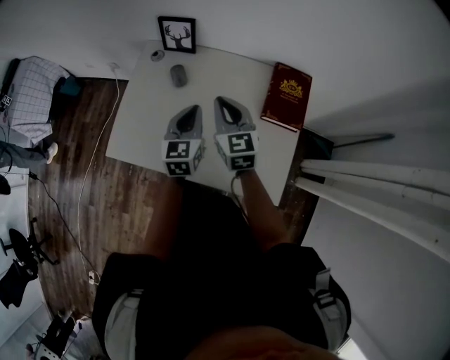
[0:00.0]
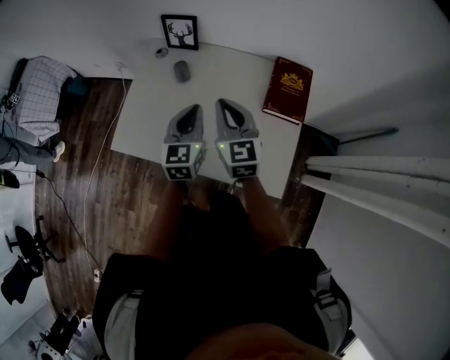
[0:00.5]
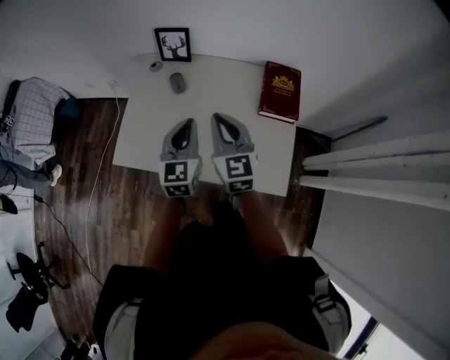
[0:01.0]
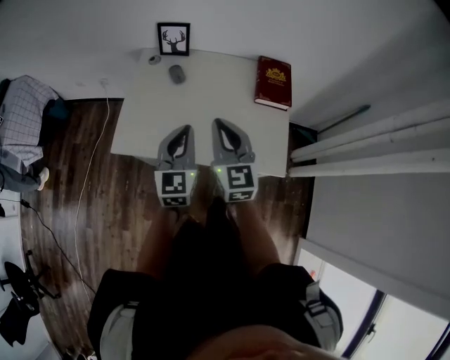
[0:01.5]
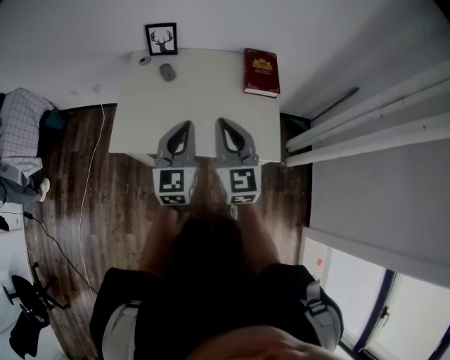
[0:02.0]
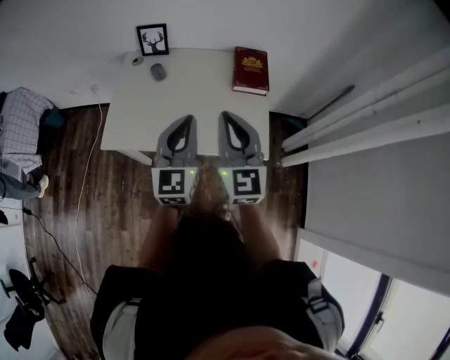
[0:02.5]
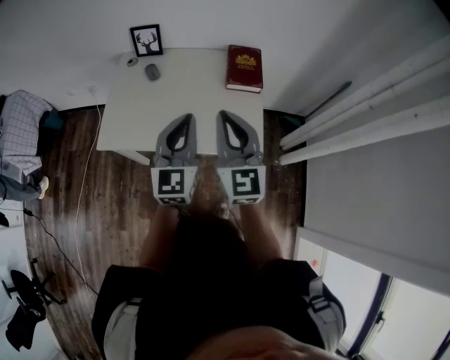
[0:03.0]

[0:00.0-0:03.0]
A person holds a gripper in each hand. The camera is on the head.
0:00.0 to 0:01.5: The right gripper goes approximately 20 cm backward; the left gripper is displaced backward, upward and to the left by some 20 cm.
0:01.5 to 0:03.0: The left gripper moves to the right, upward and backward, roughly 15 cm; the right gripper heads to the right, backward and upward, covering some 20 cm.

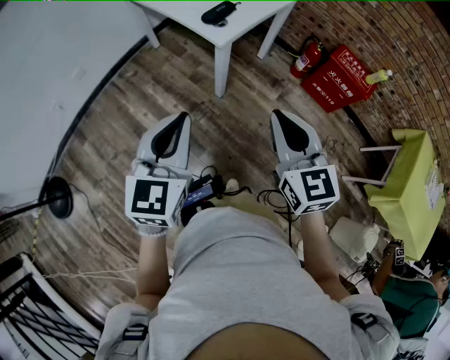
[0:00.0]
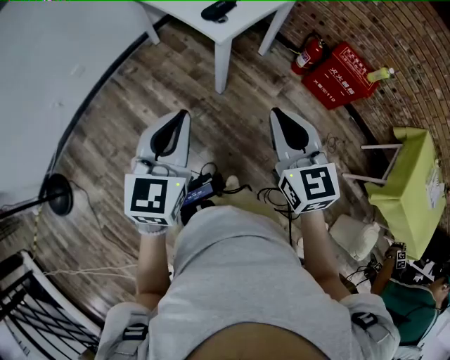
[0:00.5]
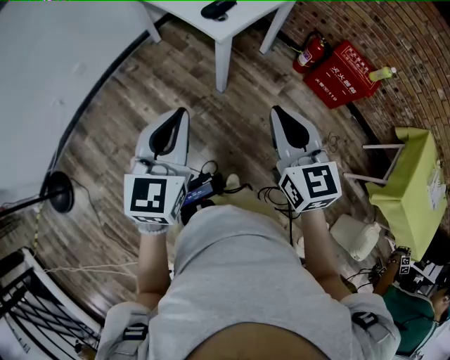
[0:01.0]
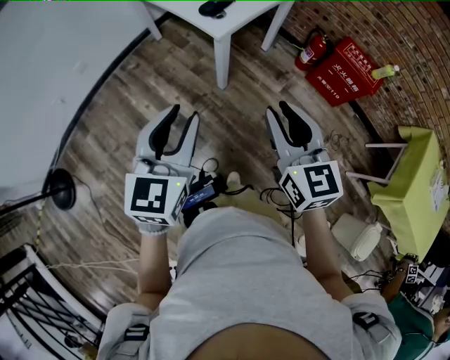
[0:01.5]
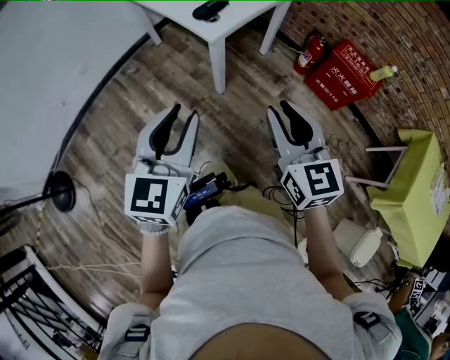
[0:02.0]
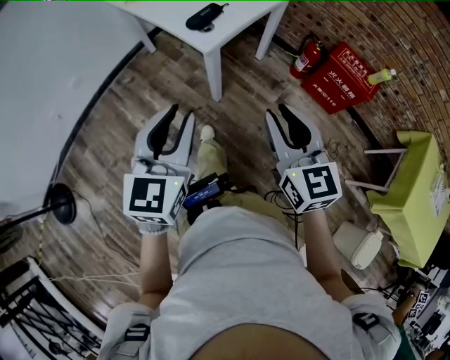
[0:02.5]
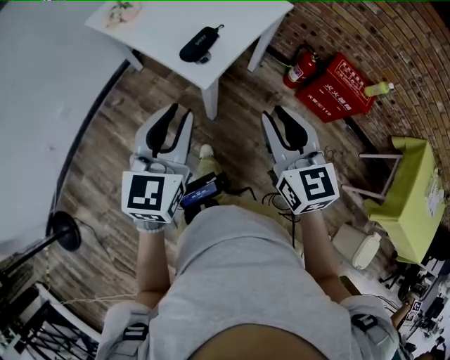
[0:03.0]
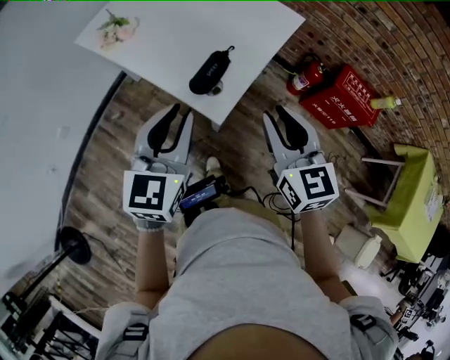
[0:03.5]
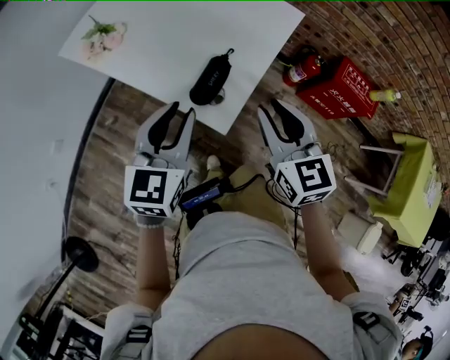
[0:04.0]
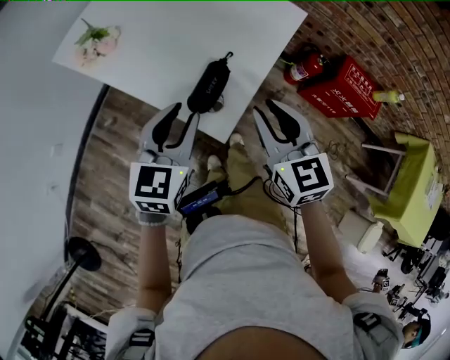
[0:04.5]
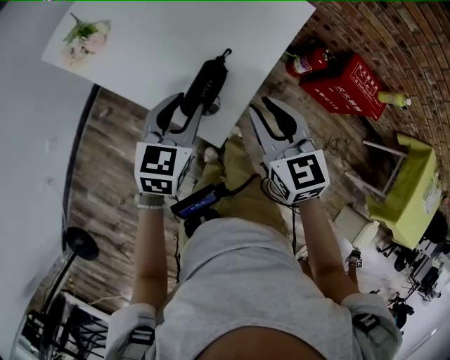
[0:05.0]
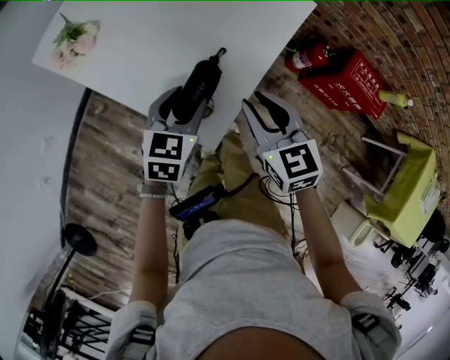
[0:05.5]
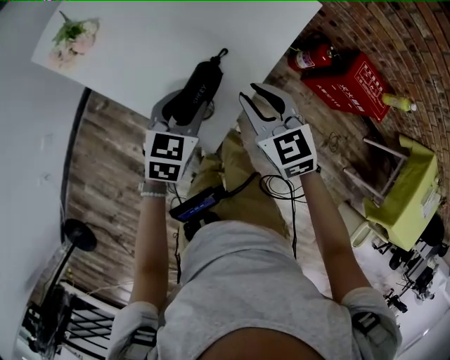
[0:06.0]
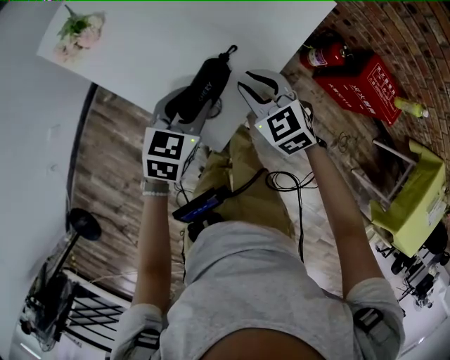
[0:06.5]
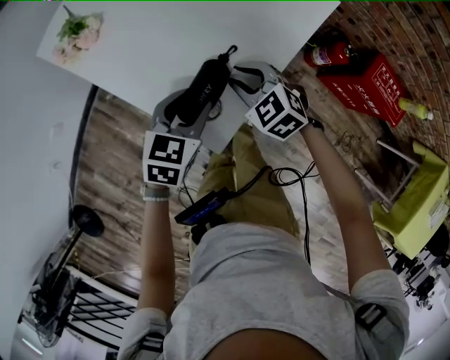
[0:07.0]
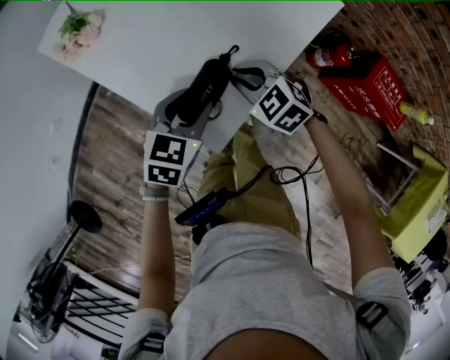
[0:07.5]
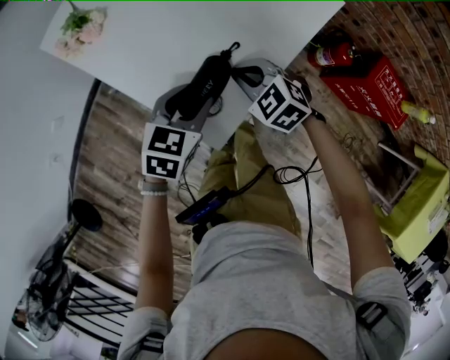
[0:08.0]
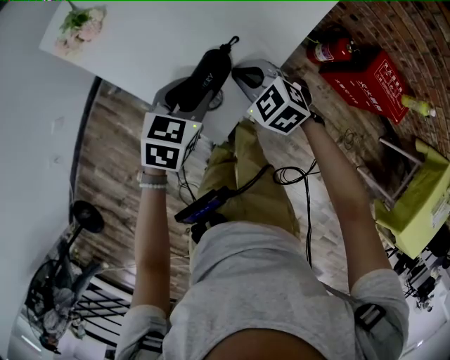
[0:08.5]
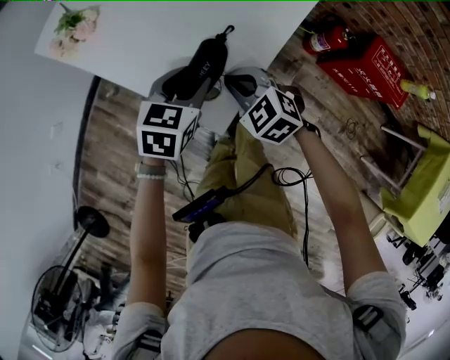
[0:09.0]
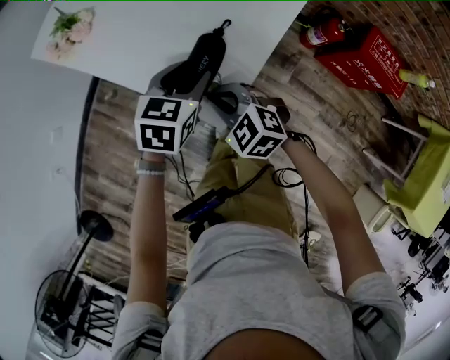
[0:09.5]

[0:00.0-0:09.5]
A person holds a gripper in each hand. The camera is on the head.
0:00.0 to 0:02.0: The right gripper ends up roughly 5 cm from where it was, and opens its fingers. Meanwhile the left gripper goes about 5 cm to the right, and opens up.
0:02.0 to 0:04.0: The two grippers go approximately 40 cm forward.
0:04.0 to 0:05.5: The grippers both shift downward and forward by roughly 15 cm. The left gripper opens its fingers.
0:05.5 to 0:07.5: The right gripper heads downward and forward, covering some 15 cm, and changes its angle by roughly 40 degrees.
0:07.5 to 0:09.5: The right gripper is displaced backward and to the left by approximately 15 cm.

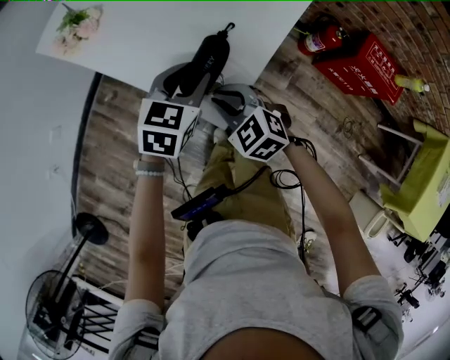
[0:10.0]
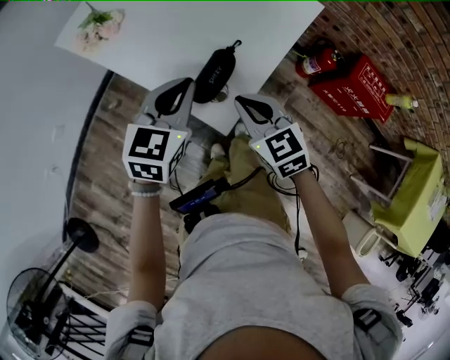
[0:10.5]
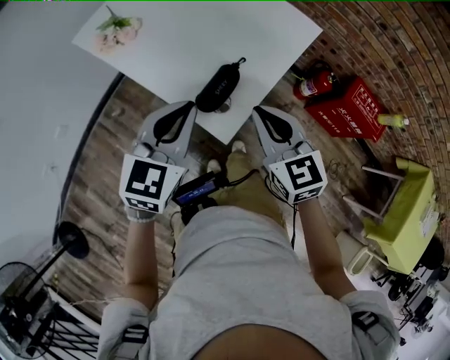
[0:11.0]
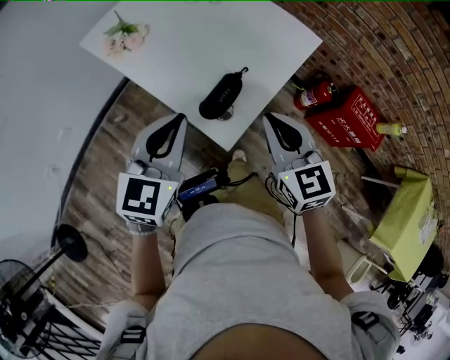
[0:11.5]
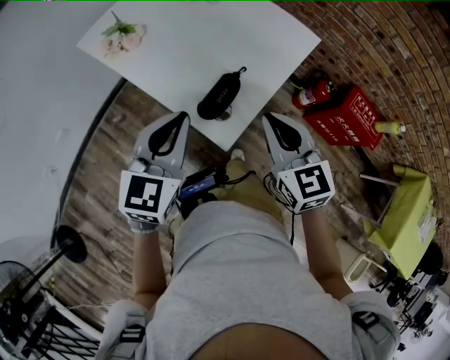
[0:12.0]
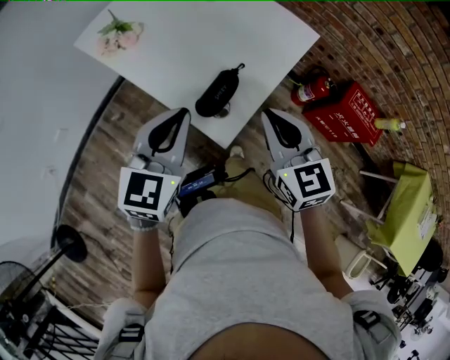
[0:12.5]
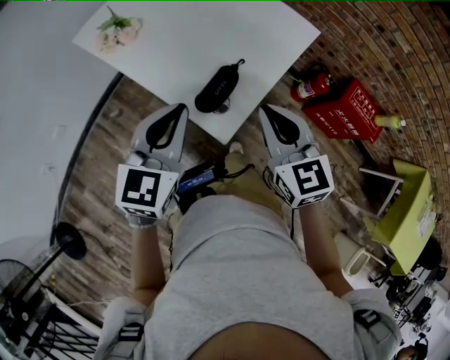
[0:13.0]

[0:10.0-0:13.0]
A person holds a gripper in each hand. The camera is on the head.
0:10.0 to 0:11.5: The left gripper moves upward, backward and to the left, roughly 20 cm, changes its angle by about 20 degrees, and closes up. The right gripper travels upward and to the right by roughly 20 cm, and turns by roughly 30 degrees.
0:11.5 to 0:13.0: The grippers move only a little.

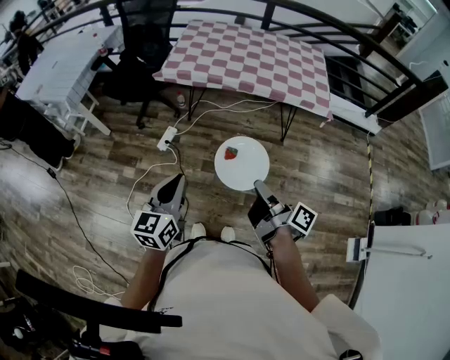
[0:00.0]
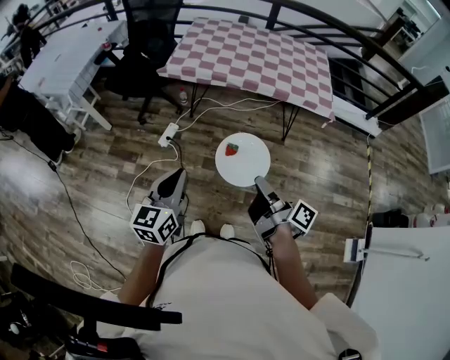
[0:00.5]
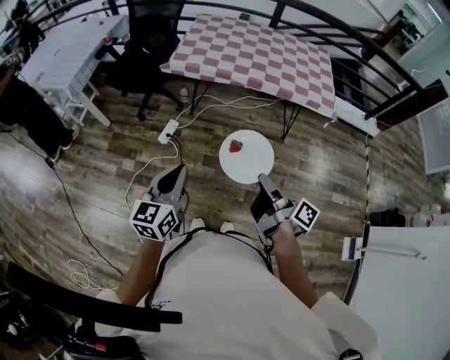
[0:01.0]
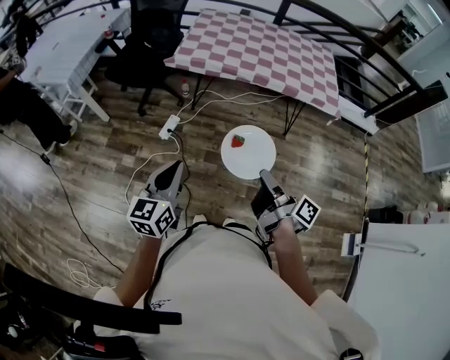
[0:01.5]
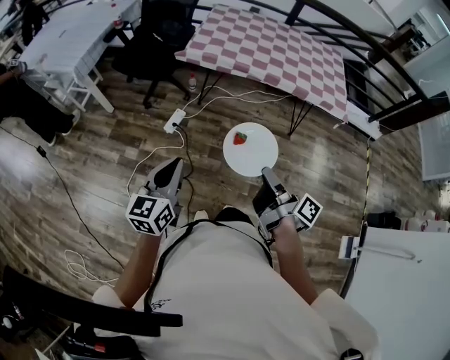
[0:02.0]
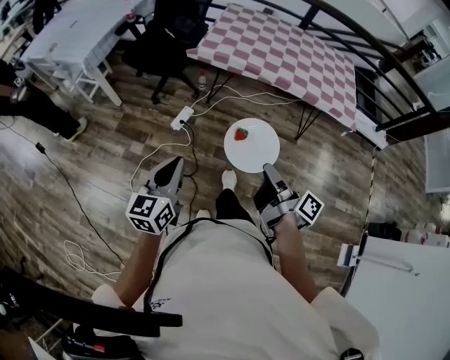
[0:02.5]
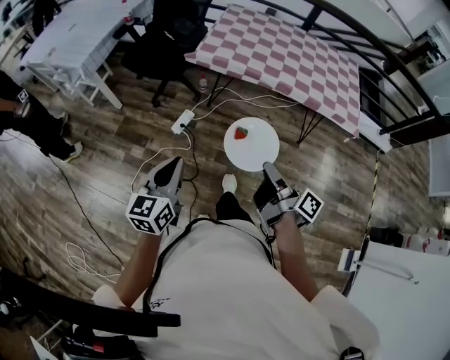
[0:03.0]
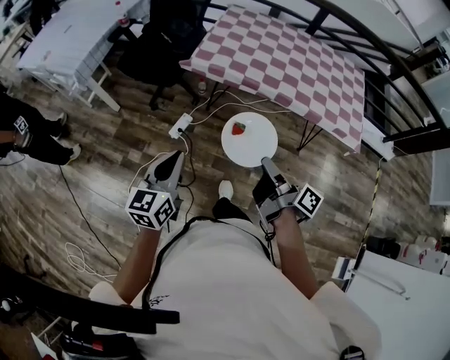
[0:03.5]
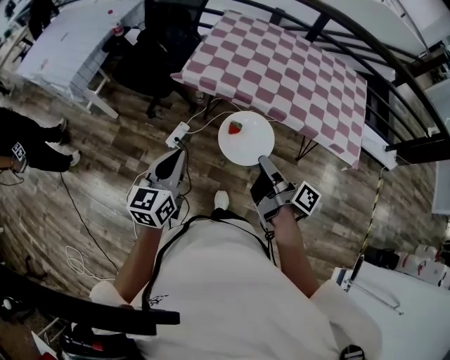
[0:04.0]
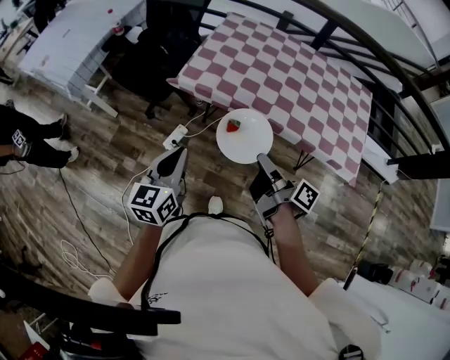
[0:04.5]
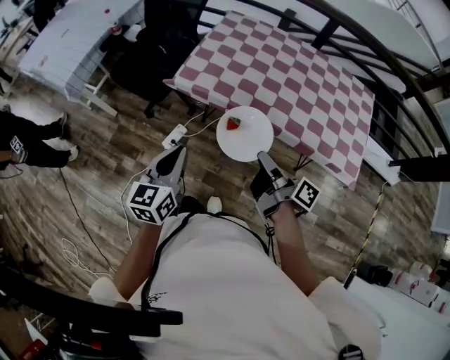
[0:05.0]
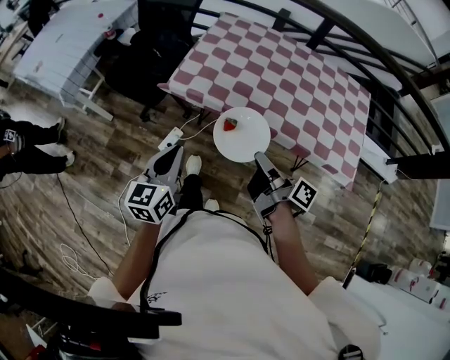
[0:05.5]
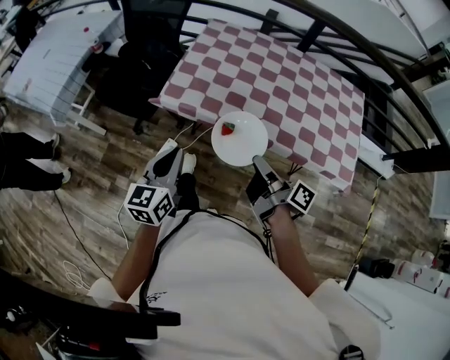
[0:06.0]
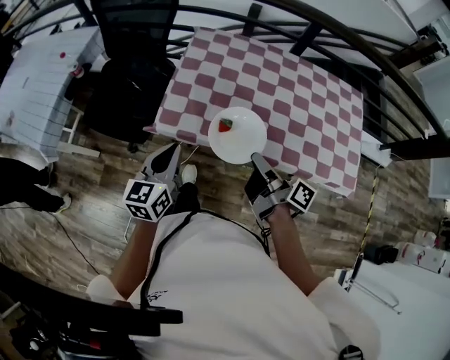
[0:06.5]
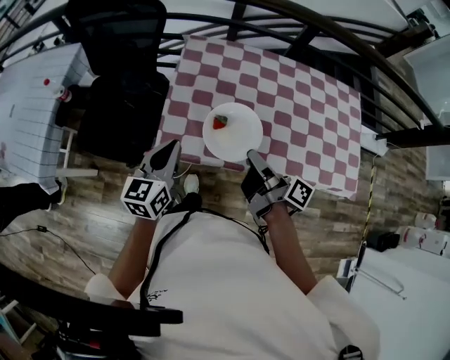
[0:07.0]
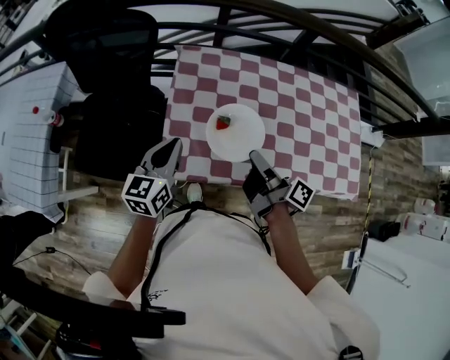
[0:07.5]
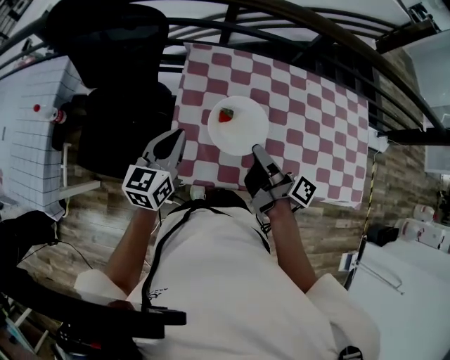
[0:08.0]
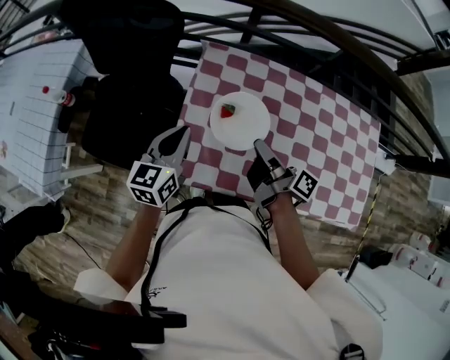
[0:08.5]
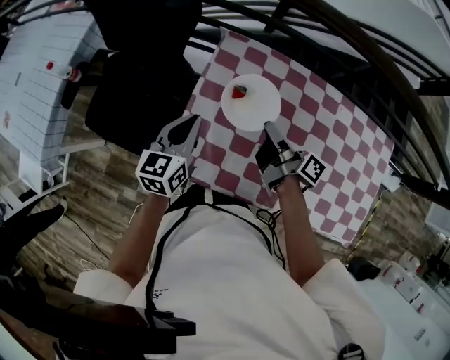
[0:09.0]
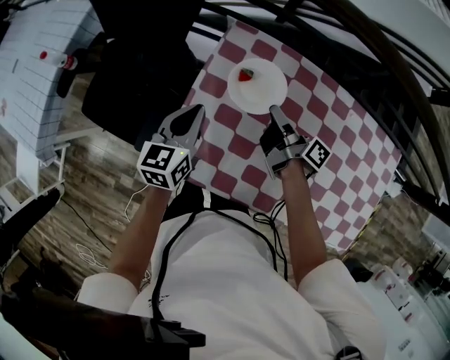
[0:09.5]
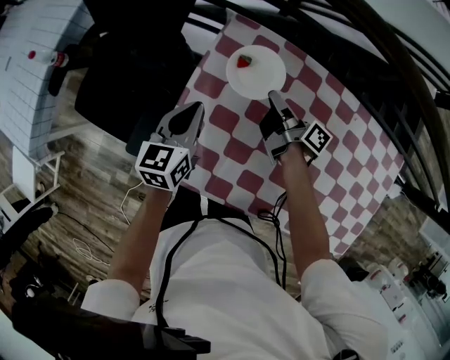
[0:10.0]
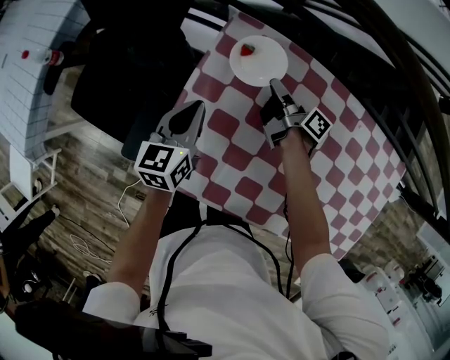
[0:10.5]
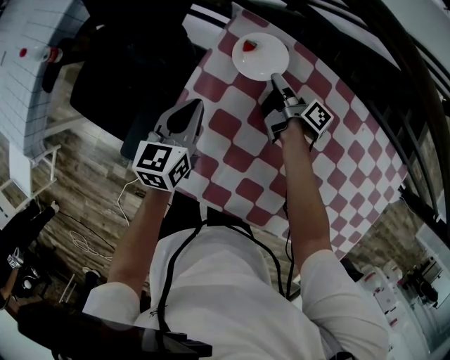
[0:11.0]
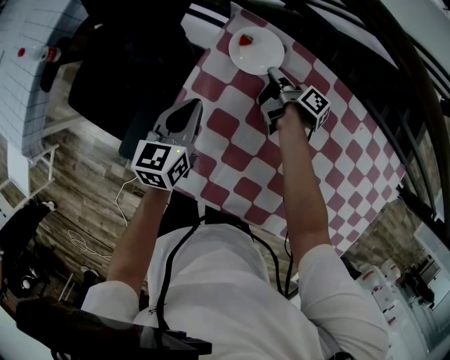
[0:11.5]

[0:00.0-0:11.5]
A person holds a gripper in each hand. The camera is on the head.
0:00.0 to 0:02.0: The left gripper changes place by roughly 15 cm.
0:02.0 to 0:04.0: The left gripper moves about 30 cm.
0:04.0 to 0:06.0: The left gripper changes place by approximately 20 cm.
0:06.0 to 0:07.5: The left gripper shifts by roughly 40 cm.
0:07.5 to 0:09.5: The left gripper shifts by some 15 cm.
0:09.5 to 0:11.5: The left gripper shifts roughly 5 cm downward.
